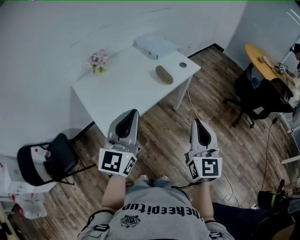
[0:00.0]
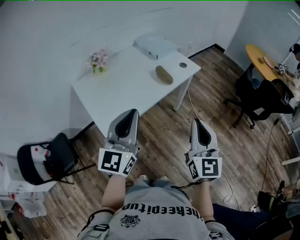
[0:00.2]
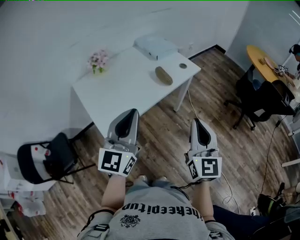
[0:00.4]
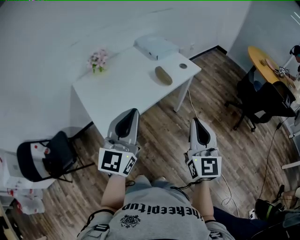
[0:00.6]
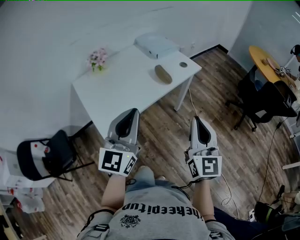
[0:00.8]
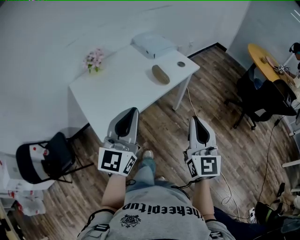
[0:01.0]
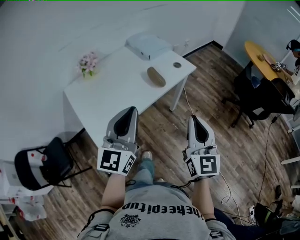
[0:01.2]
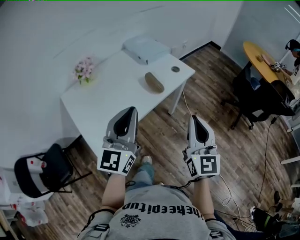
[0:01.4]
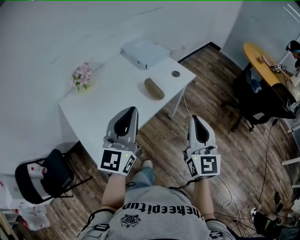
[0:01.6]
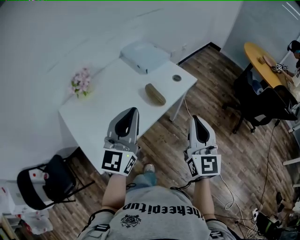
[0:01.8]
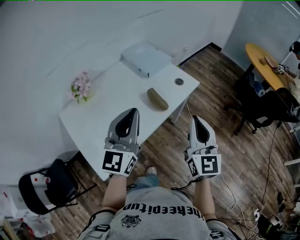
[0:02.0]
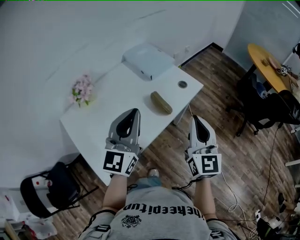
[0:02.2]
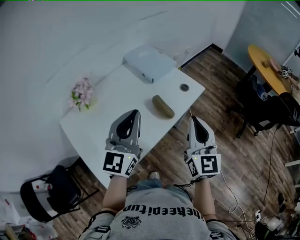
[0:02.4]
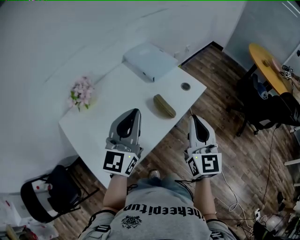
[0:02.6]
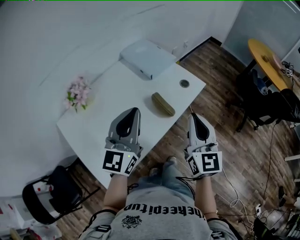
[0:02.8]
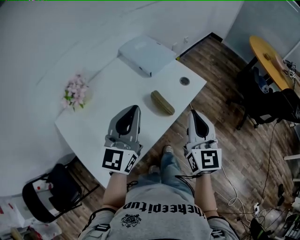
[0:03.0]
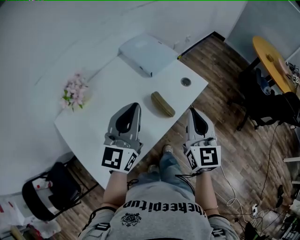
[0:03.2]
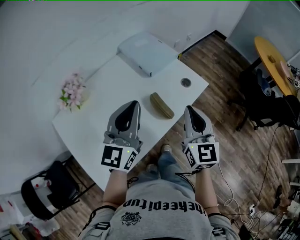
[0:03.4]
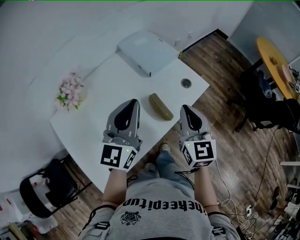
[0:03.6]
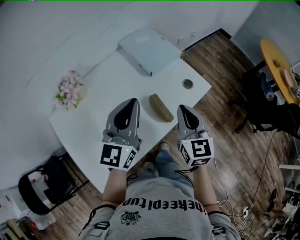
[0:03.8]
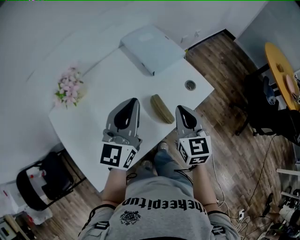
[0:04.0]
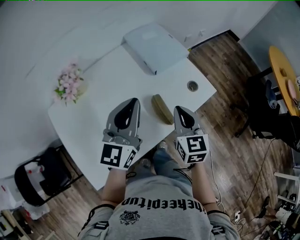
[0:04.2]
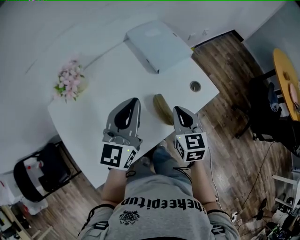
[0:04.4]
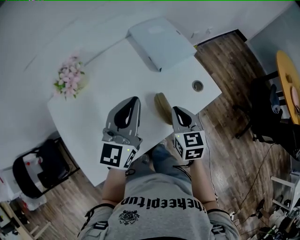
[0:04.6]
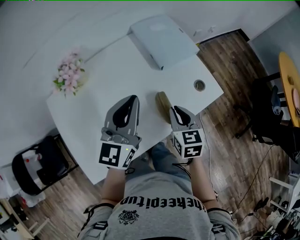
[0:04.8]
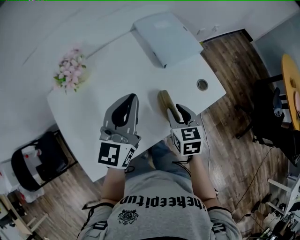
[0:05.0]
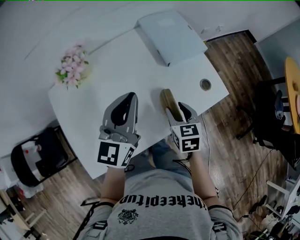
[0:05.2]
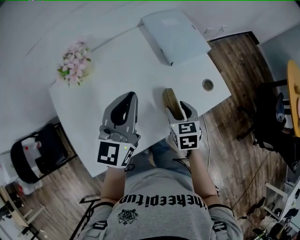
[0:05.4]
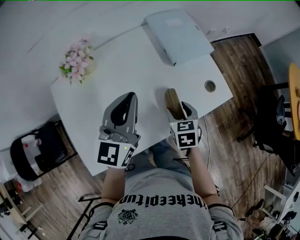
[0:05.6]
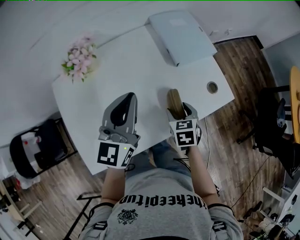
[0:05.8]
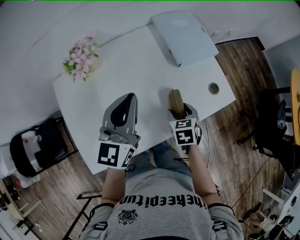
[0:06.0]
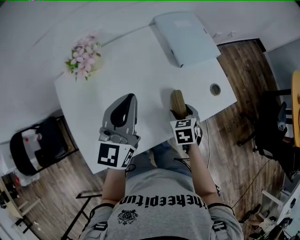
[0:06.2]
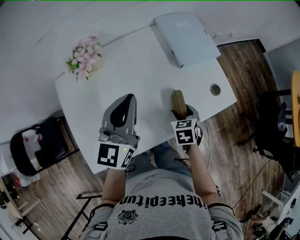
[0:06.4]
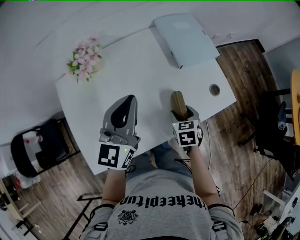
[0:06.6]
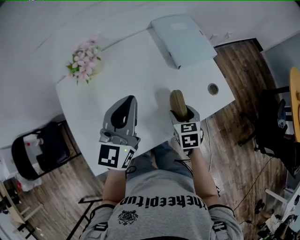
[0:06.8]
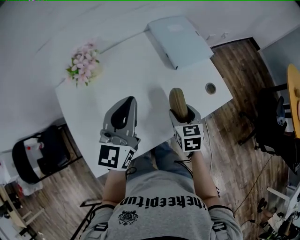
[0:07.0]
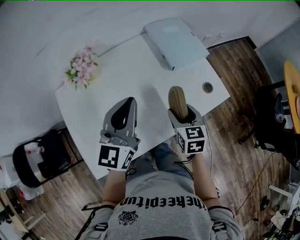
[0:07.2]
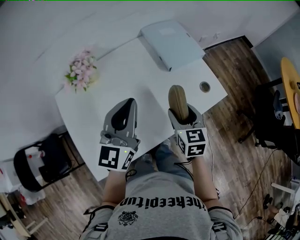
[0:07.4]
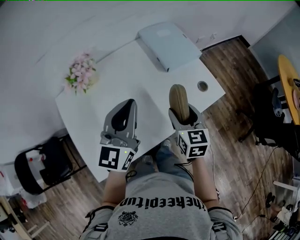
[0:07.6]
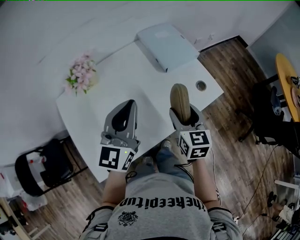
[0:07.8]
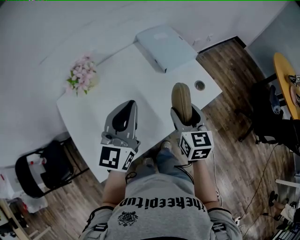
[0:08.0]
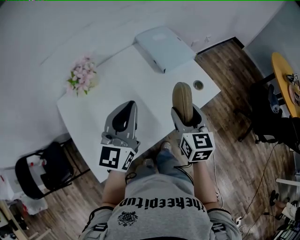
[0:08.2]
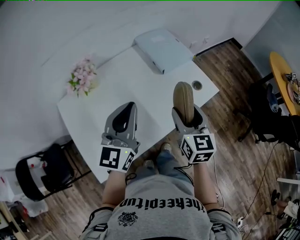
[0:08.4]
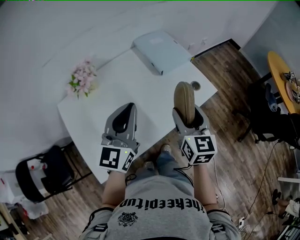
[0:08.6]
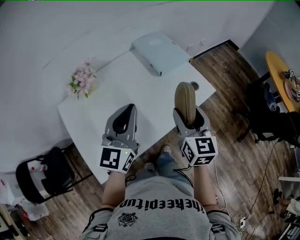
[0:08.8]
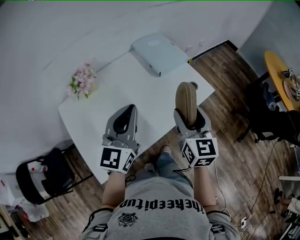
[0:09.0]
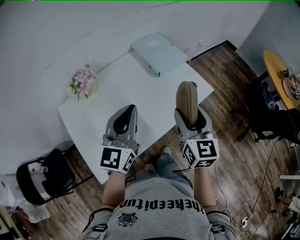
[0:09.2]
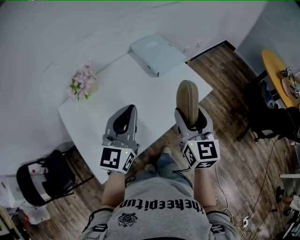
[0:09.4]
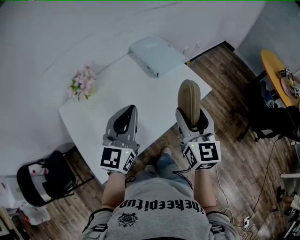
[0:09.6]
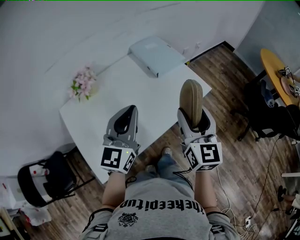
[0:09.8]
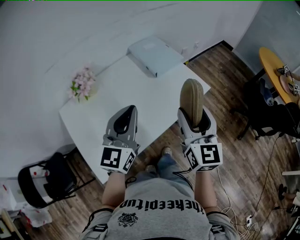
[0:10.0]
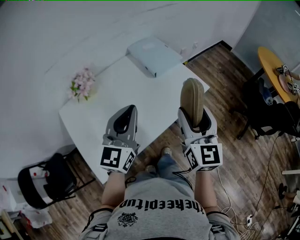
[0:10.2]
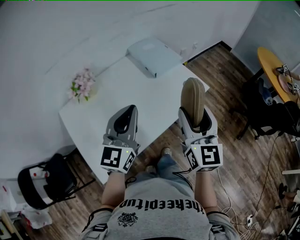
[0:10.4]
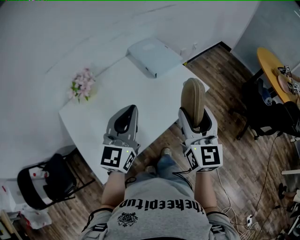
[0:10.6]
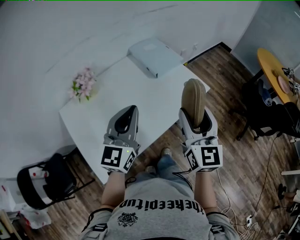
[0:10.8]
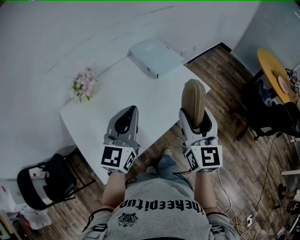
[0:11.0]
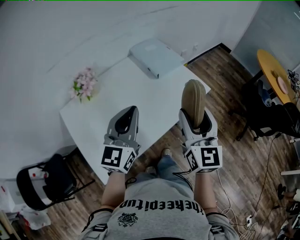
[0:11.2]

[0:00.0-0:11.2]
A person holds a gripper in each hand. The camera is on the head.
0:00.0 to 0:01.6: The two grippers go approximately 15 cm forward.
0:01.6 to 0:03.2: The right gripper shifts some 20 cm forward and to the left. The left gripper moves forward, approximately 15 cm.
0:03.2 to 0:04.8: The right gripper moves downward and forward, approximately 20 cm, and angles its fingers downward, by roughly 30 degrees. Meanwhile the left gripper travels forward by roughly 10 cm.
0:04.8 to 0:06.4: The right gripper goes about 10 cm downward, turns by approximately 20 degrees, and opens; the left gripper moves to the left, roughly 5 cm.
0:06.4 to 0:08.0: The right gripper moves upward, about 15 cm, and tips its fingers upward by roughly 30 degrees. The left gripper changes place by roughly 5 cm.
0:08.0 to 0:09.6: The right gripper moves upward and backward, some 15 cm, while the left gripper is displaced backward by roughly 5 cm.
0:09.6 to 0:11.2: There are only small adjustments of the grippers.

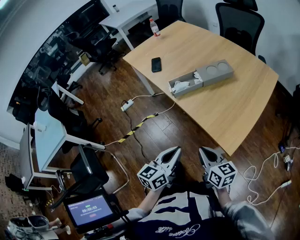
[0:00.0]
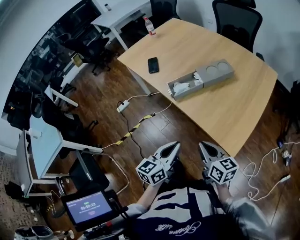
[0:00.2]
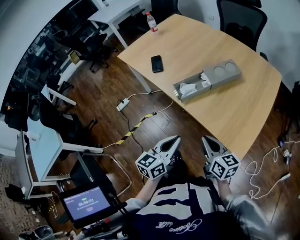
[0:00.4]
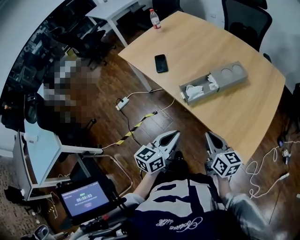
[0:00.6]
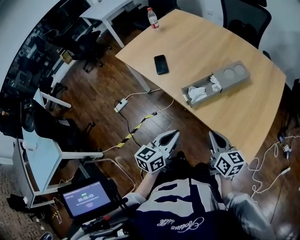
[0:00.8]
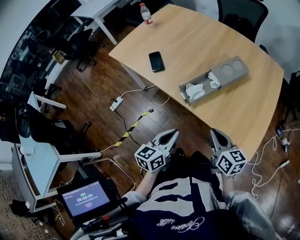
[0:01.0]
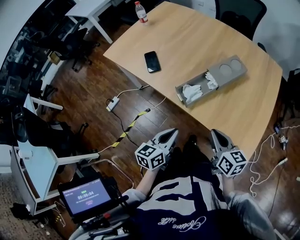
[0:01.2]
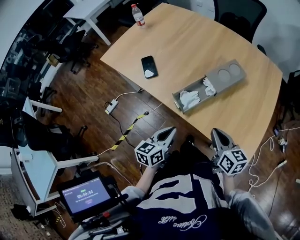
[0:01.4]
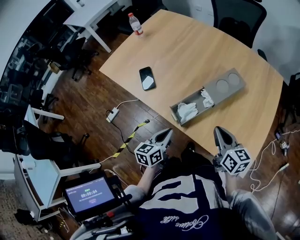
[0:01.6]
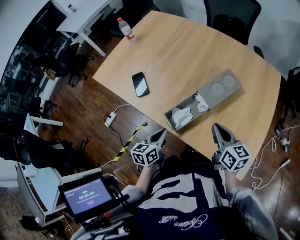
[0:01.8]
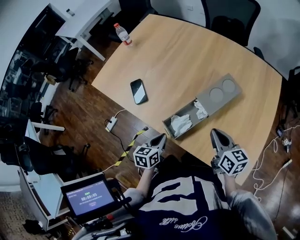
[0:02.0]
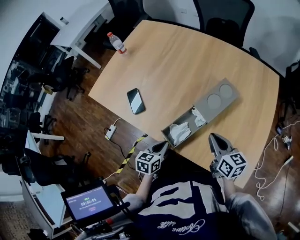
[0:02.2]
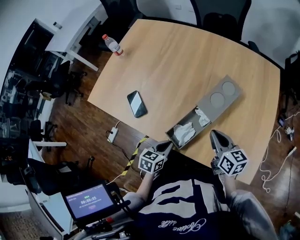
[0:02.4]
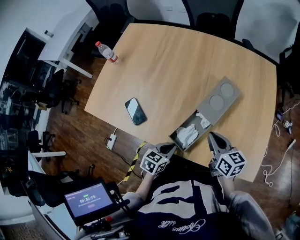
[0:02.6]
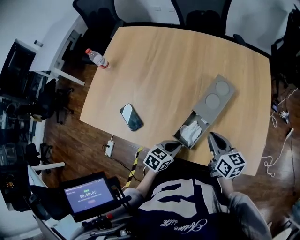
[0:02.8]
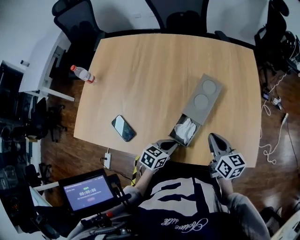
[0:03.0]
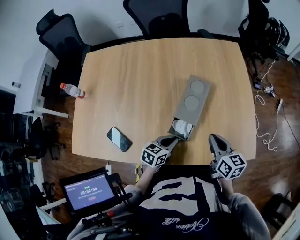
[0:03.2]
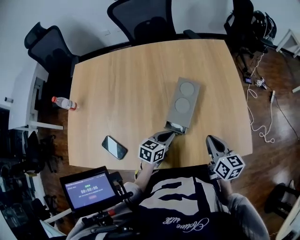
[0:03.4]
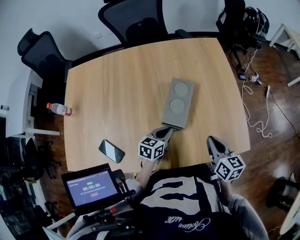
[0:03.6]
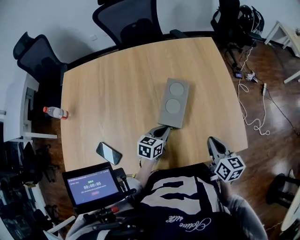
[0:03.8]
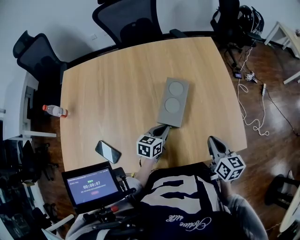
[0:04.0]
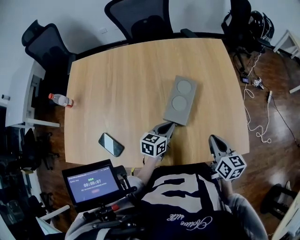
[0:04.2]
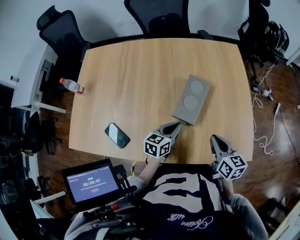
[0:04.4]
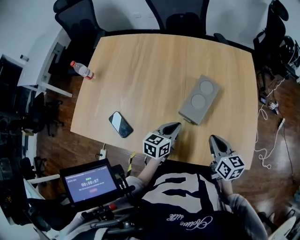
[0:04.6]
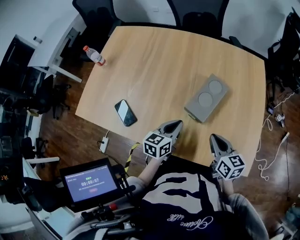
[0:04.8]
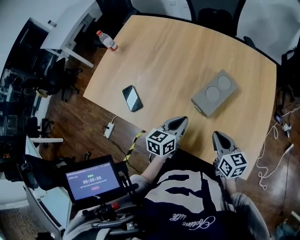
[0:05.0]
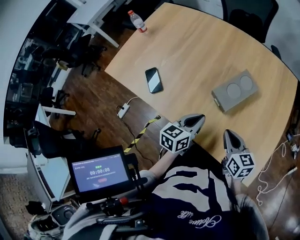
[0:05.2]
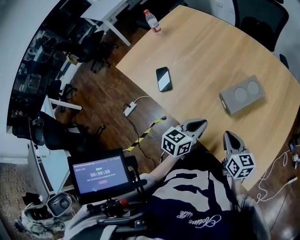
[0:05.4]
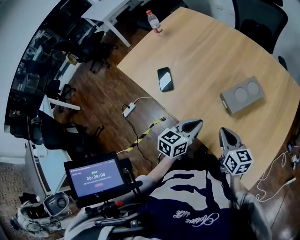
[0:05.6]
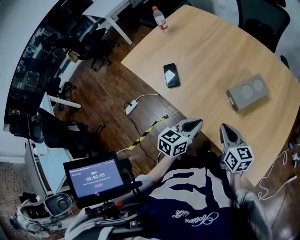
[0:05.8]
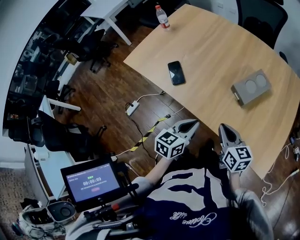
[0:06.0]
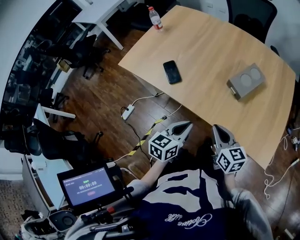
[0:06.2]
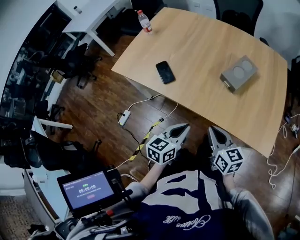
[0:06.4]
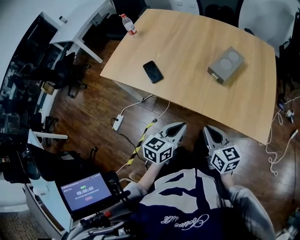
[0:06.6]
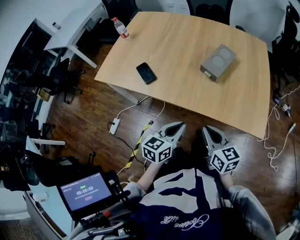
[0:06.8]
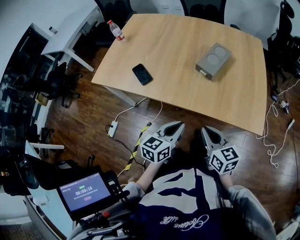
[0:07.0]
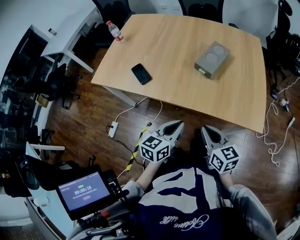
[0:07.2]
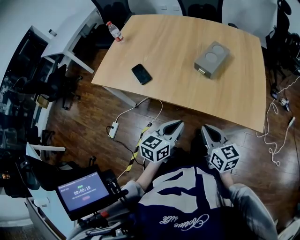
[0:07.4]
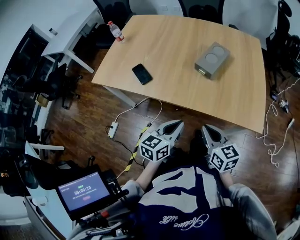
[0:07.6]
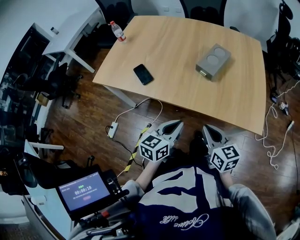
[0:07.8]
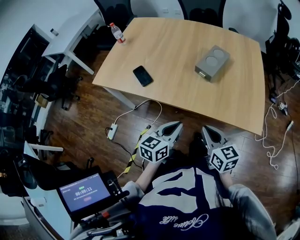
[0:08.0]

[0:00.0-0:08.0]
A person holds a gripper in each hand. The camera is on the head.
0:00.0 to 0:01.6: The left gripper shifts some 35 cm forward and to the left; the right gripper goes some 30 cm forward, and turns by roughly 20 degrees.
0:01.6 to 0:03.2: The left gripper changes place by roughly 20 cm, and changes its angle by about 60 degrees, while the right gripper shifts by some 10 cm, and turns by some 40 degrees.
0:03.2 to 0:04.8: The left gripper moves upward, approximately 5 cm, and turns by about 30 degrees.
0:04.8 to 0:06.4: The left gripper shifts some 25 cm backward and to the left. Meanwhile the right gripper shifts some 25 cm to the left and backward.
0:06.4 to 0:08.0: The right gripper shifts approximately 5 cm to the right and backward. Meanwhile the left gripper ends up about 5 cm from where it was.

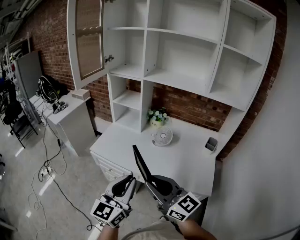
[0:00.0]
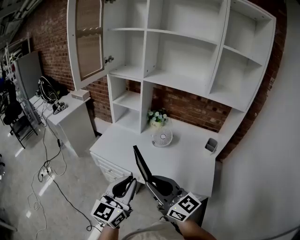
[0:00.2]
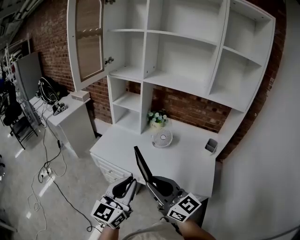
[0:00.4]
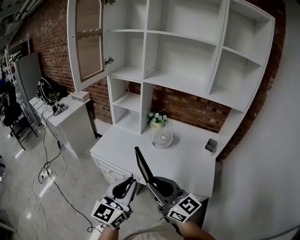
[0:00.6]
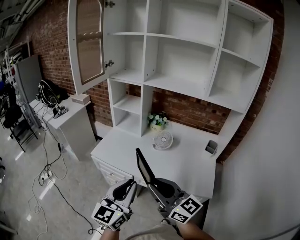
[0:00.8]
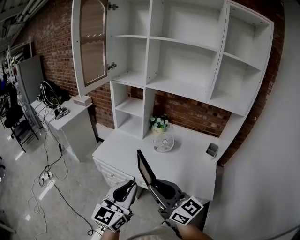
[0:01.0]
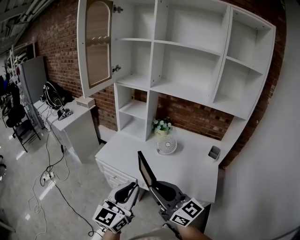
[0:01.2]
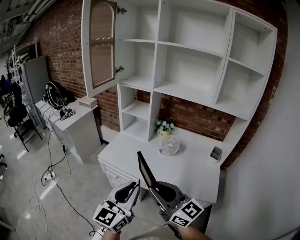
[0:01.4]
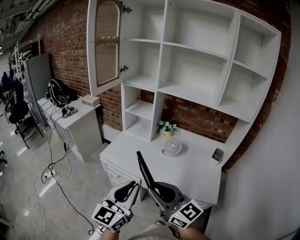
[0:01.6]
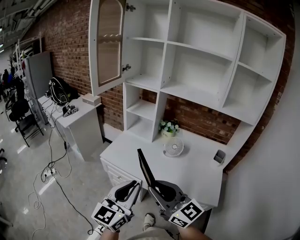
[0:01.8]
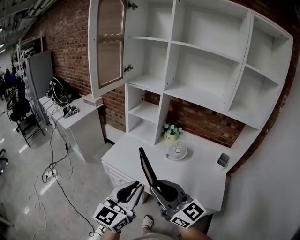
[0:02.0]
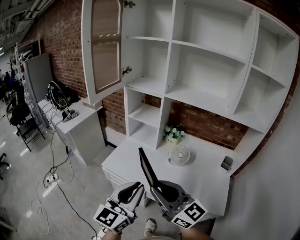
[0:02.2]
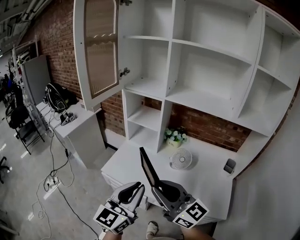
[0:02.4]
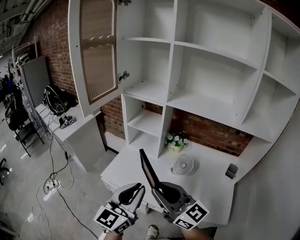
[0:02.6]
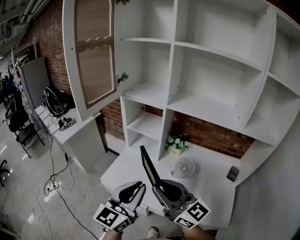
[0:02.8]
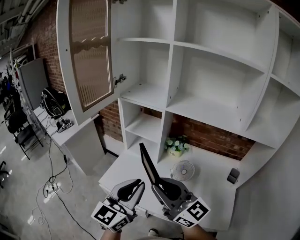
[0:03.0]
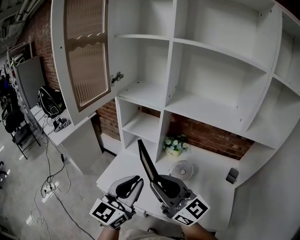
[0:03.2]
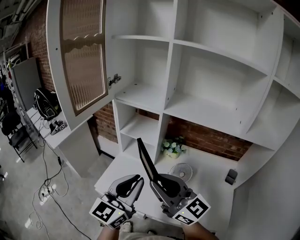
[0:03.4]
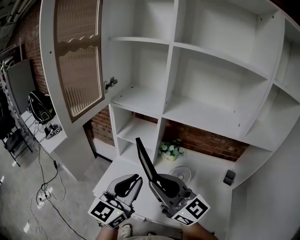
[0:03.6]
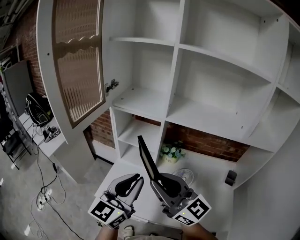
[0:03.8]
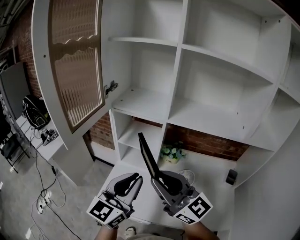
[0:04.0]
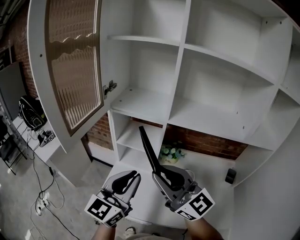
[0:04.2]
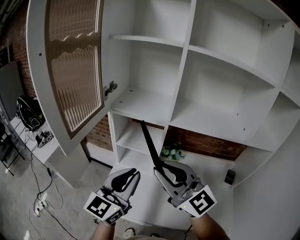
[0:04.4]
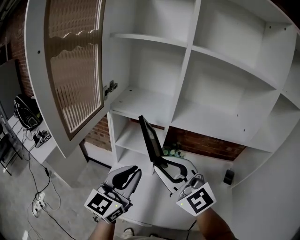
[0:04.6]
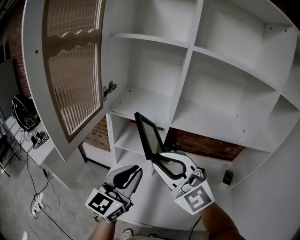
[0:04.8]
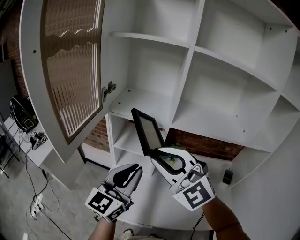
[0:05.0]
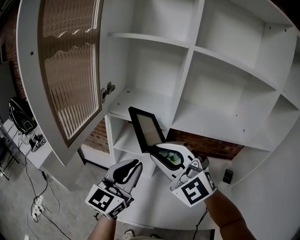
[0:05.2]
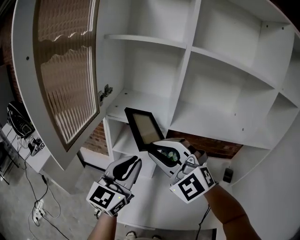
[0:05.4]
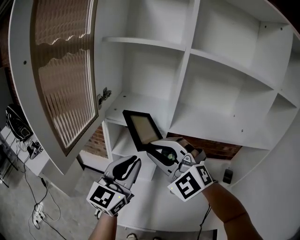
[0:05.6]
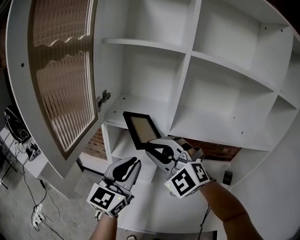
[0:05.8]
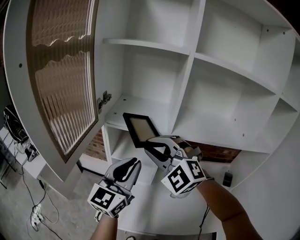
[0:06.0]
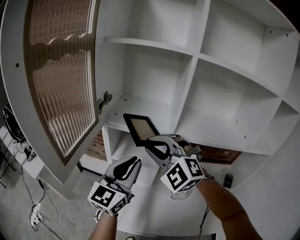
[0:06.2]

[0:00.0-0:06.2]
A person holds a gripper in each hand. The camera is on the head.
0:00.0 to 0:01.6: The left gripper changes place by some 5 cm; the right gripper moves approximately 5 cm.
0:01.6 to 0:03.2: Both grippers move forward, some 25 cm.
0:03.2 to 0:04.6: The left gripper shifts about 15 cm forward. The right gripper moves forward and upward, about 15 cm, and turns by roughly 40 degrees.
0:04.6 to 0:06.2: The two grippers go approximately 10 cm forward. The right gripper rotates roughly 40 degrees.
